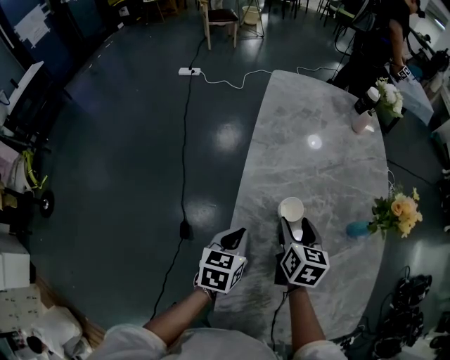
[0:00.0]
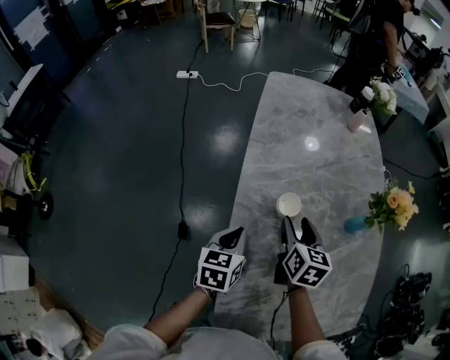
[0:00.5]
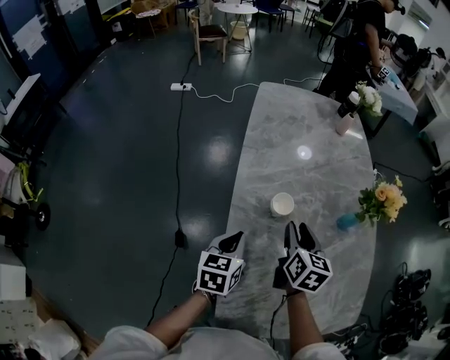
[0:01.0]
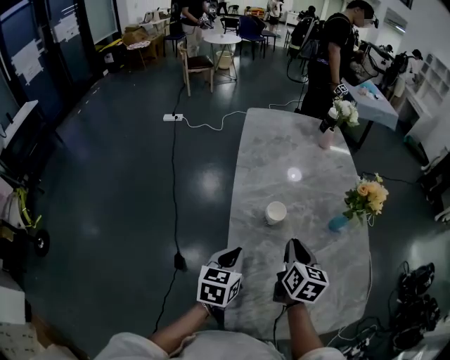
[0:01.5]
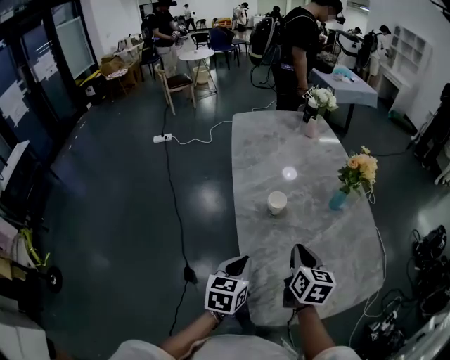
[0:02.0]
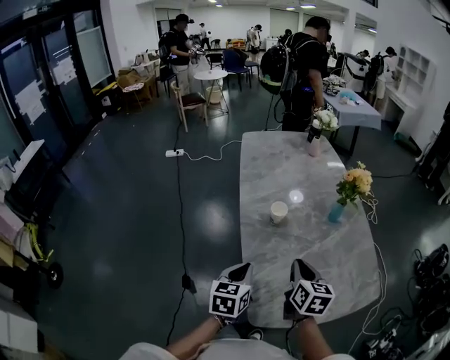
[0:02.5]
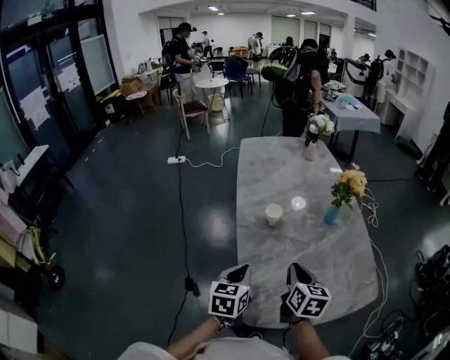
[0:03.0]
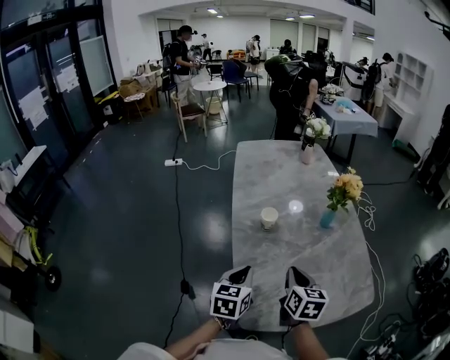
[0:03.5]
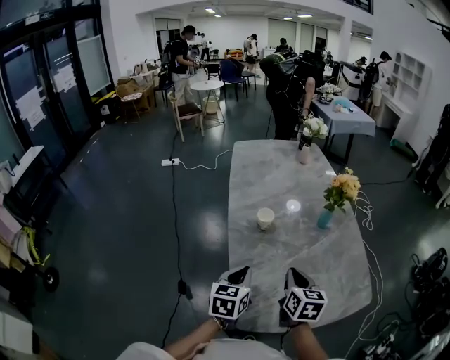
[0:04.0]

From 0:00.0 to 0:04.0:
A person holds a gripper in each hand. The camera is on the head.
From 0:00.0 to 0:02.0: The grippers both shift backward and upward by about 15 cm. The right gripper closes up.
From 0:02.0 to 0:04.0: The left gripper travels to the right by about 5 cm. Meanwhile the right gripper is displaced backward and to the right by roughly 10 cm.

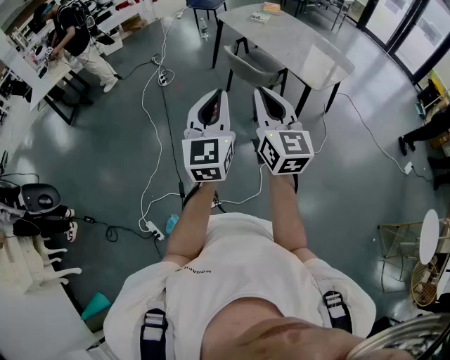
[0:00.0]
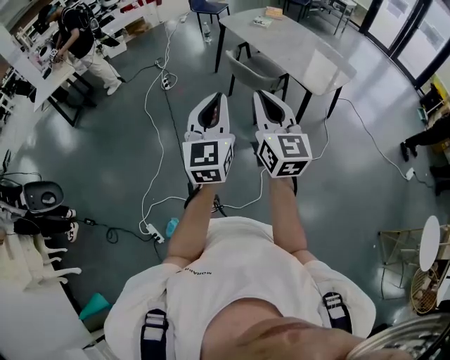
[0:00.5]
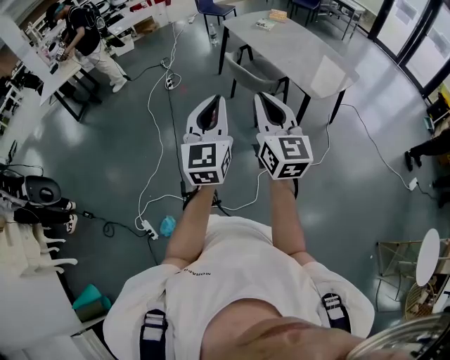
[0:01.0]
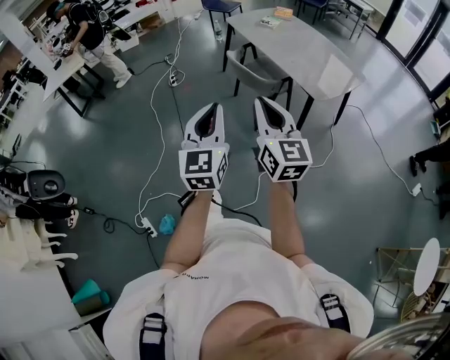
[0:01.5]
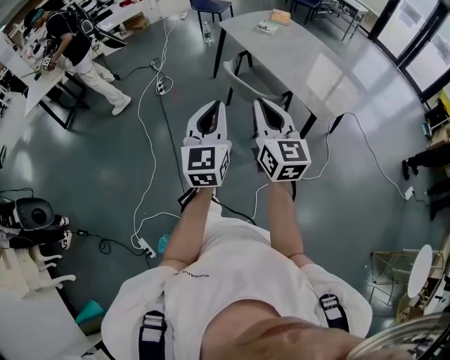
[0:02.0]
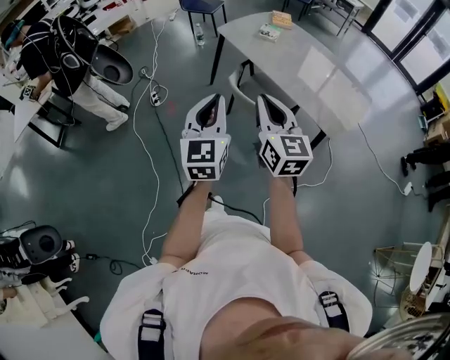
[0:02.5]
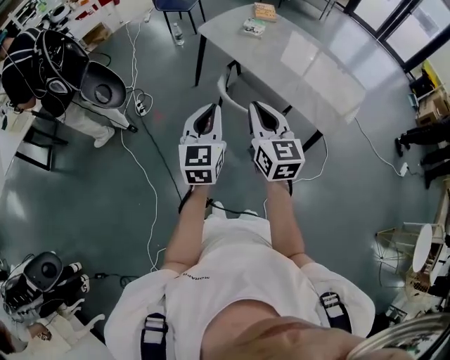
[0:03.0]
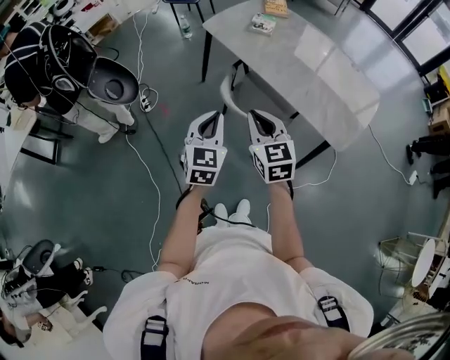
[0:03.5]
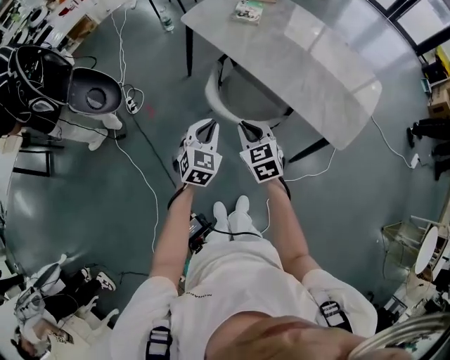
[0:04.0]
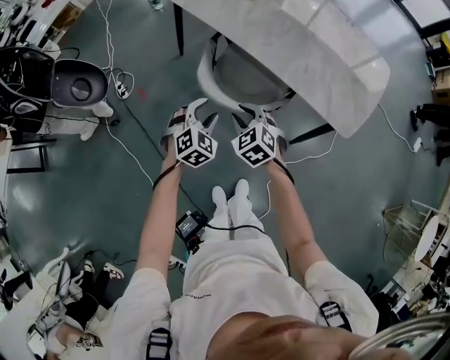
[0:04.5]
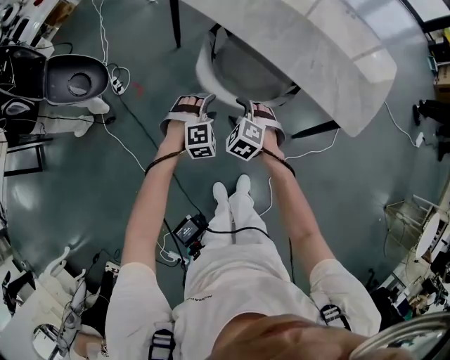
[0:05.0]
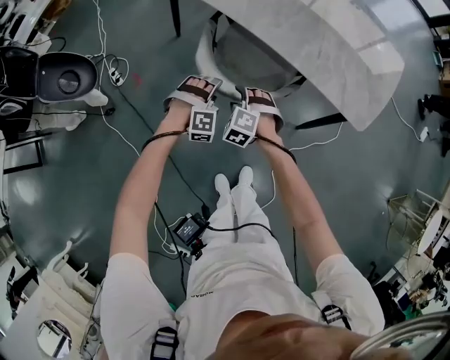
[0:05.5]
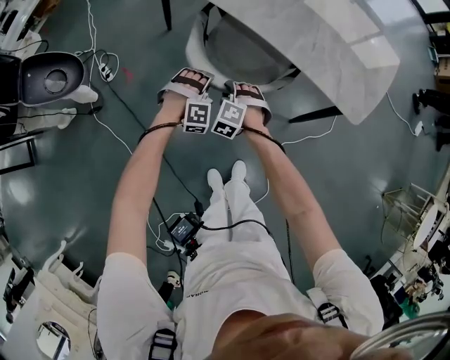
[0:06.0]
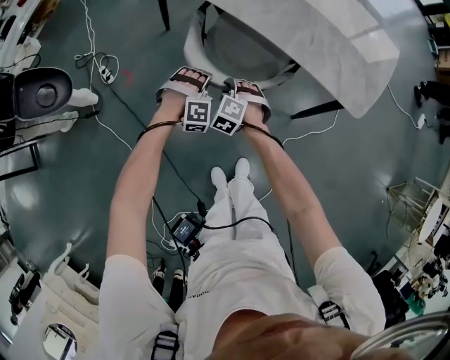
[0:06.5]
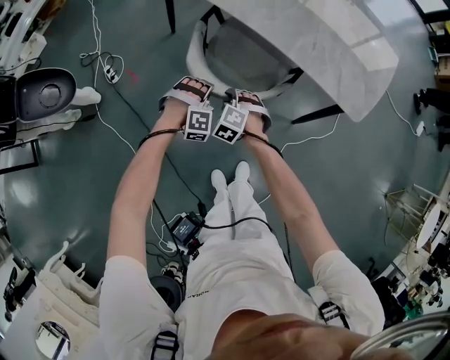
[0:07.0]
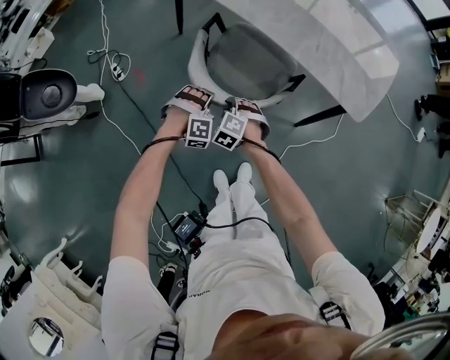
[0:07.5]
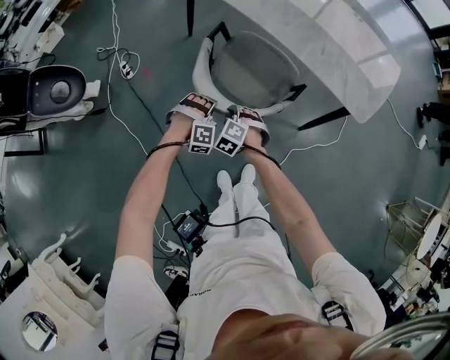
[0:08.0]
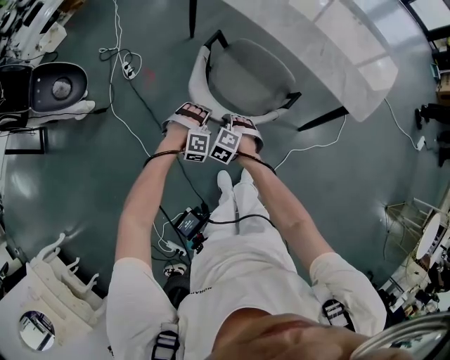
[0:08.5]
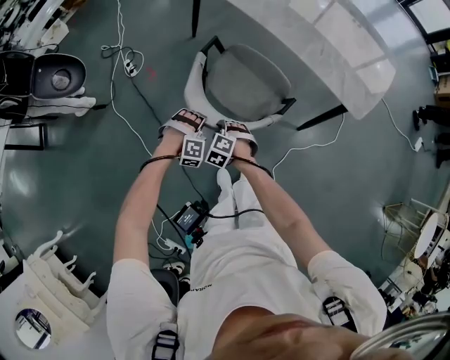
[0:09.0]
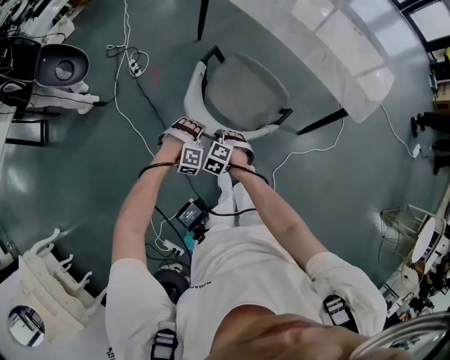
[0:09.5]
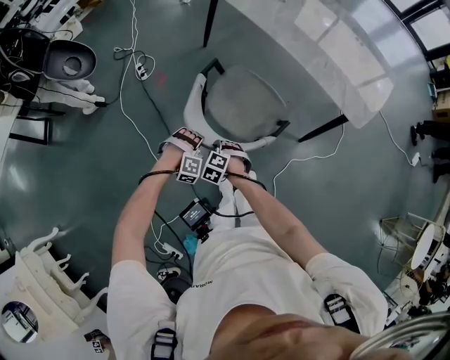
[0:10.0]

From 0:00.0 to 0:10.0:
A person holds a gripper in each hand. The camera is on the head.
From 0:00.0 to 0:02.0: The two grippers go some 20 cm forward.
From 0:02.0 to 0:04.0: The two grippers travel together, forward, roughly 40 cm. The grippers both shift downward by approximately 25 cm. The right gripper tips its fingers downward by roughly 40 degrees. The left gripper tilts its fingers roughly 30 degrees downward.
From 0:04.0 to 0:06.0: The two grippers go approximately 25 cm downward. The right gripper swivels approximately 50 degrees, and opens up, while the left gripper rotates around the line of its fingers by about 70 degrees, clockwise from behind, and opens up.
From 0:06.0 to 0:08.0: Both grippers move backward and to the left, some 15 cm.
From 0:08.0 to 0:10.0: The two grippers go approximately 20 cm backward and to the left.

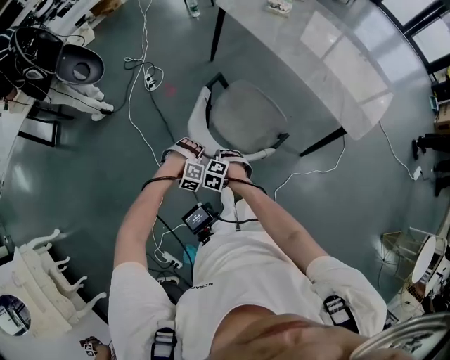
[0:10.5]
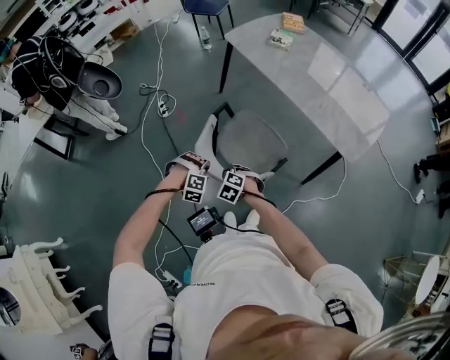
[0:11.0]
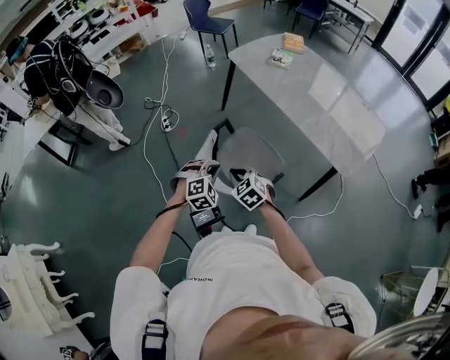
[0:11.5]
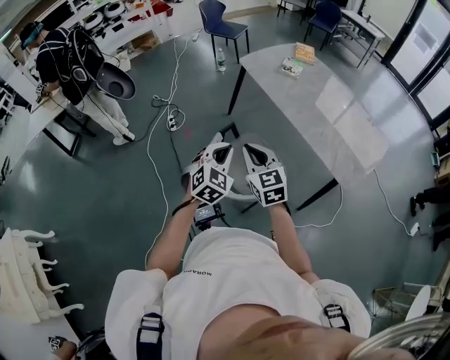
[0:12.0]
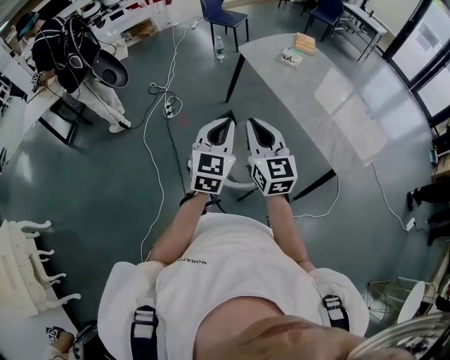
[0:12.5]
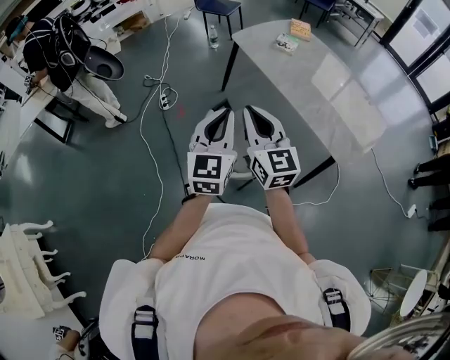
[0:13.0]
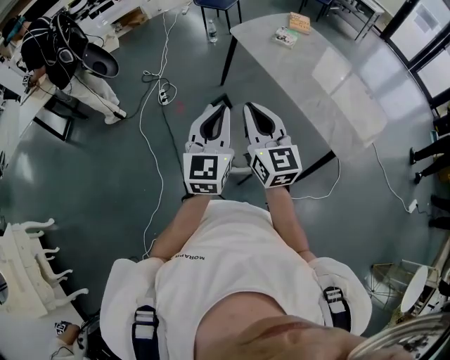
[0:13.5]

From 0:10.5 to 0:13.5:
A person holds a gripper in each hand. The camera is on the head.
From 0:10.5 to 0:12.0: Both grippers move upward, roughly 35 cm. The left gripper rolls counterclockwise, seen from behind, by some 70 degrees; the right gripper angles its fingers upward, by approximately 60 degrees, and closes its fingers.
From 0:12.0 to 0:13.5: Both grippers move upward, about 10 cm. The right gripper rotates some 20 degrees; the left gripper turns by approximately 40 degrees.

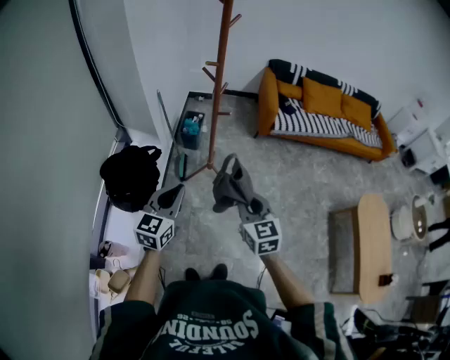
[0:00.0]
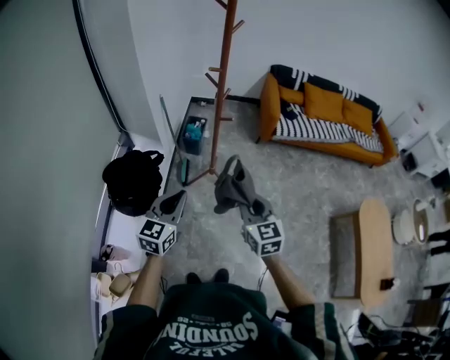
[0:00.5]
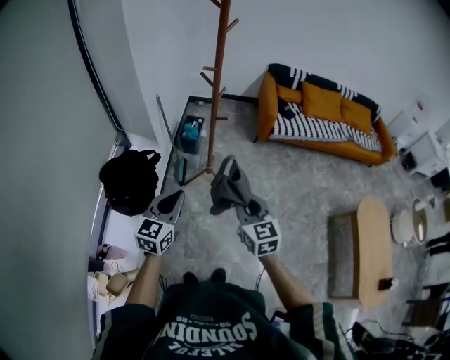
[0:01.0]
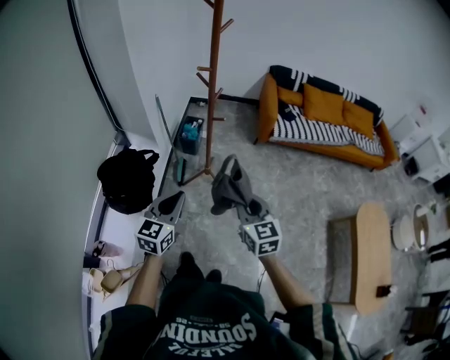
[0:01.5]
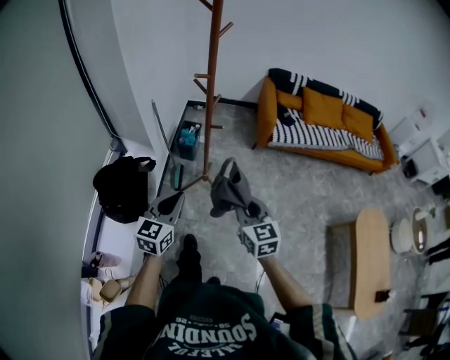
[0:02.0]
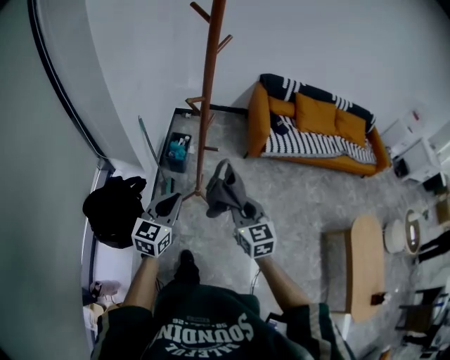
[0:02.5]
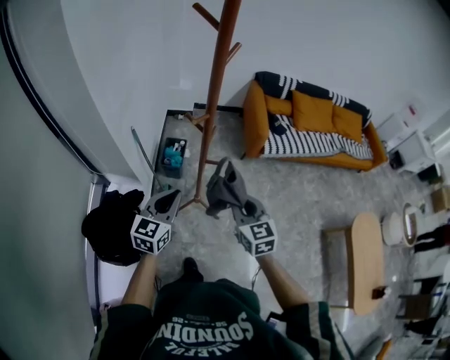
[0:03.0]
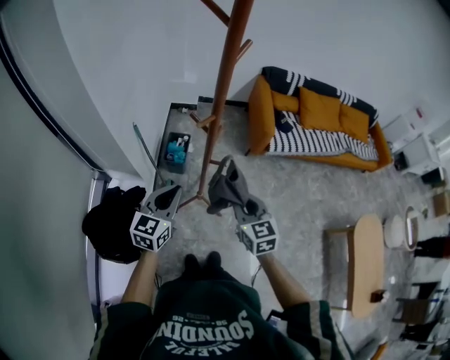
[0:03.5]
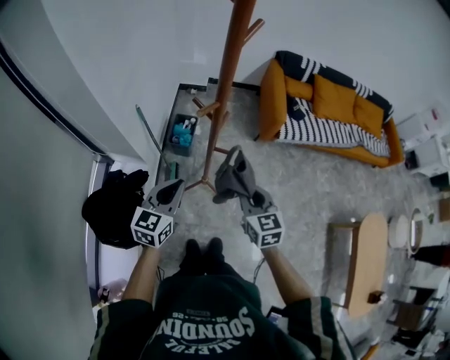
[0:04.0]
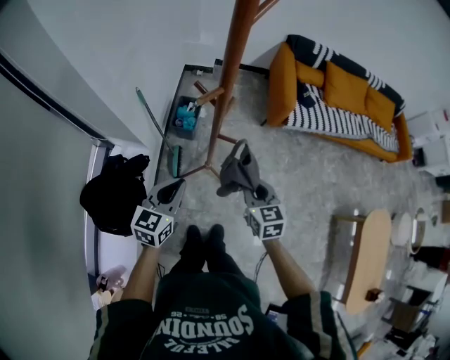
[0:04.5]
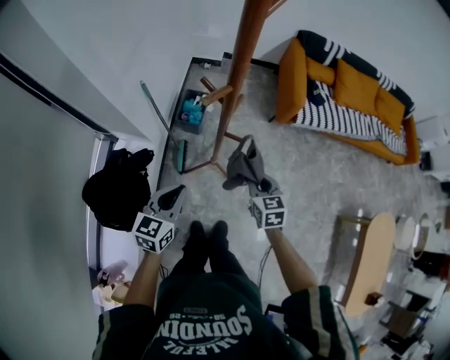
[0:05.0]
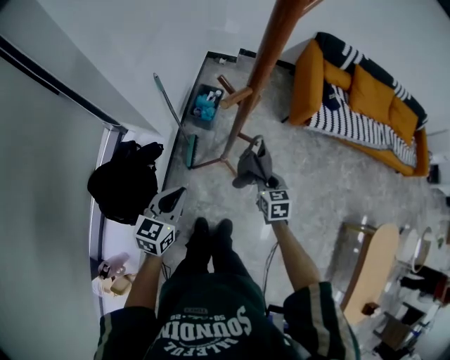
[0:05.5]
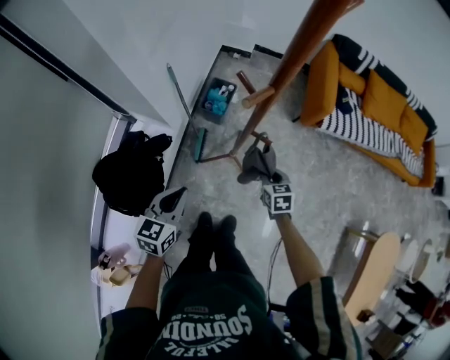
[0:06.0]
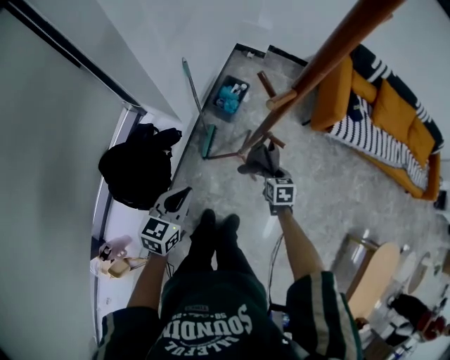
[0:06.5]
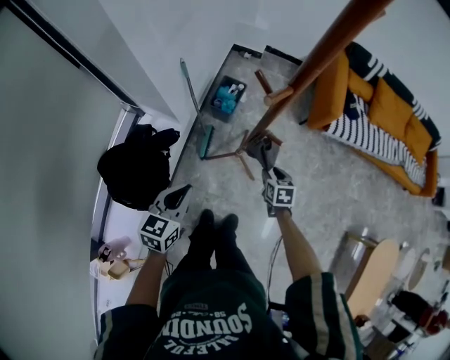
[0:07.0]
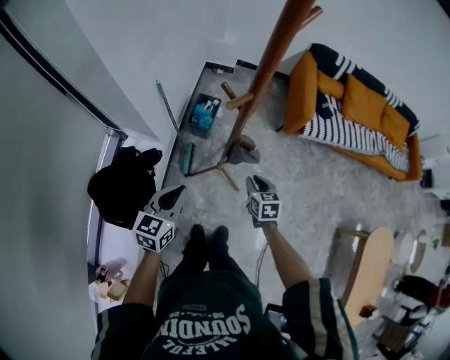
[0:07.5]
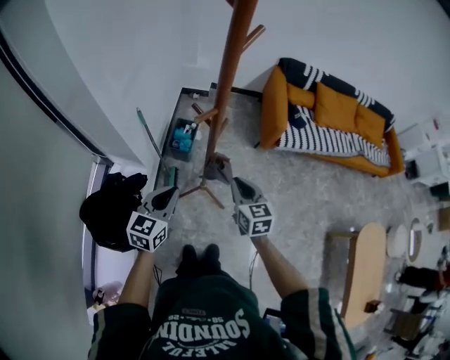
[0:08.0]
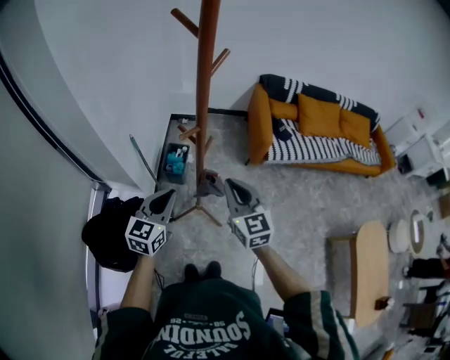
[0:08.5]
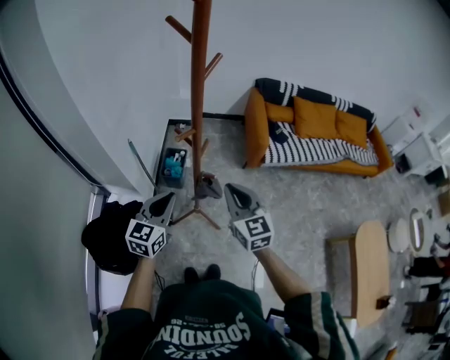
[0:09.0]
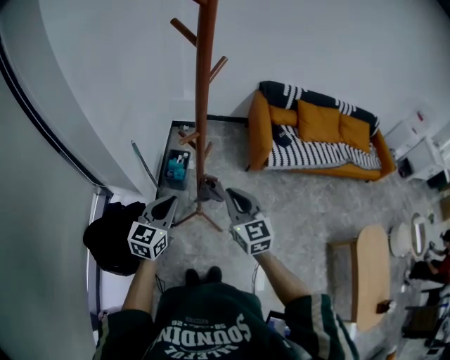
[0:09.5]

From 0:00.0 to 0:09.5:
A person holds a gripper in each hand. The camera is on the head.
From 0:00.0 to 0:02.0: The right gripper is displaced forward by roughly 5 cm; the left gripper changes place by approximately 5 cm.
From 0:02.0 to 0:04.0: Both grippers move forward, some 25 cm.
From 0:04.0 to 0:05.5: The right gripper shifts roughly 20 cm downward. Meanwhile the left gripper travels downward by approximately 10 cm.
From 0:05.5 to 0:07.5: The right gripper moves some 10 cm downward and comes back.
From 0:07.5 to 0:09.5: The right gripper goes roughly 30 cm upward, and tilts its fingers roughly 30 degrees upward. Meanwhile the left gripper travels upward and to the right by roughly 10 cm.
